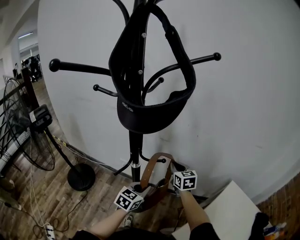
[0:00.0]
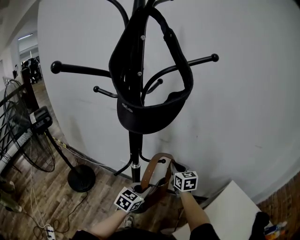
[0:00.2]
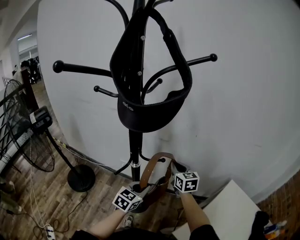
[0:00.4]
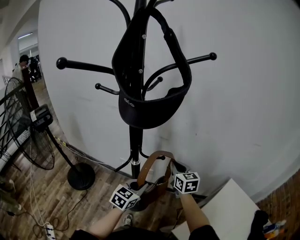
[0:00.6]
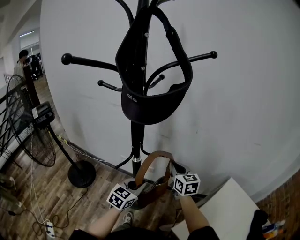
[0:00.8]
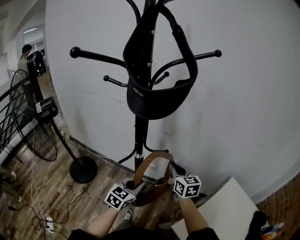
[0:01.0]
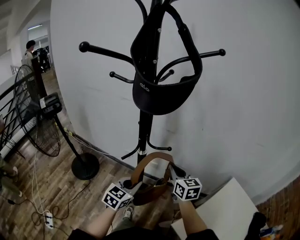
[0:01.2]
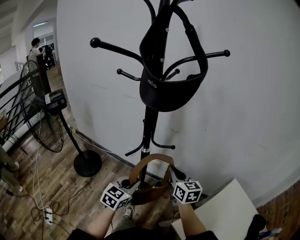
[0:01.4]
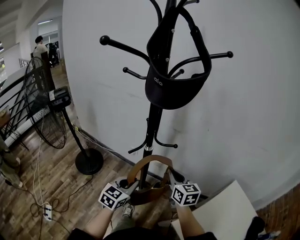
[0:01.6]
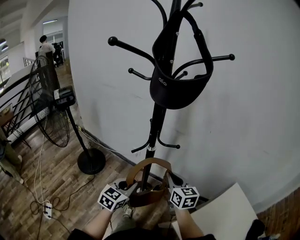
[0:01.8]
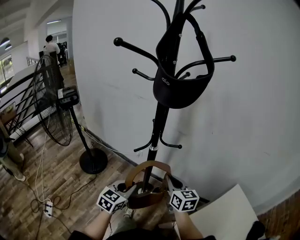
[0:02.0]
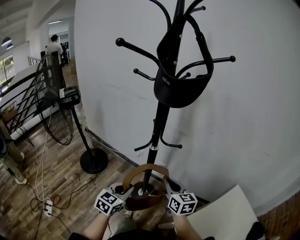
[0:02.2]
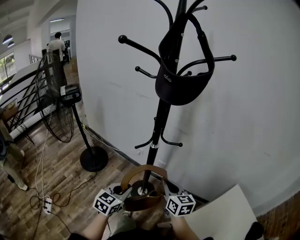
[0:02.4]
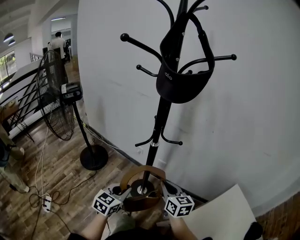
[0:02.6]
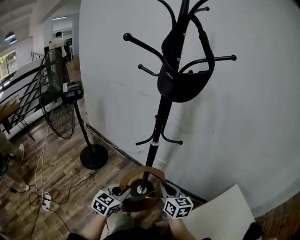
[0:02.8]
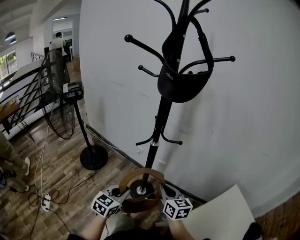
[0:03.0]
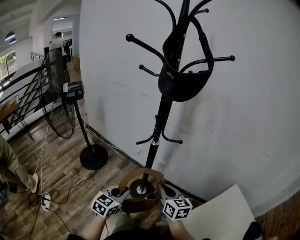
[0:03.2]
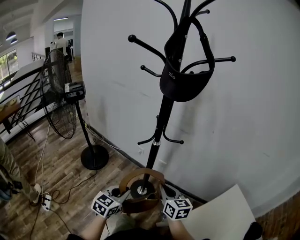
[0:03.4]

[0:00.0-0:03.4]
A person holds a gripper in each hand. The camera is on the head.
0:00.0 to 0:01.6: The left gripper is displaced backward and to the left by approximately 15 cm. The right gripper moves backward, roughly 15 cm.
0:01.6 to 0:03.4: Both grippers move backward, roughly 10 cm.

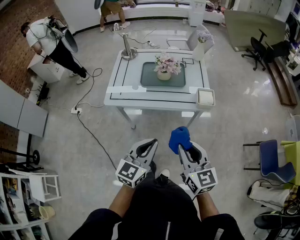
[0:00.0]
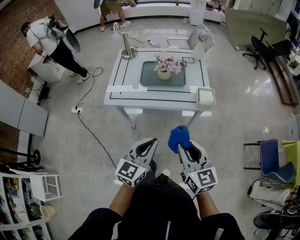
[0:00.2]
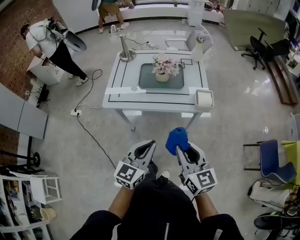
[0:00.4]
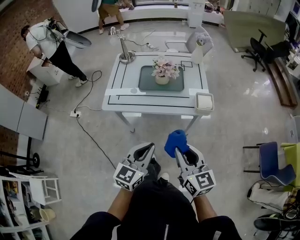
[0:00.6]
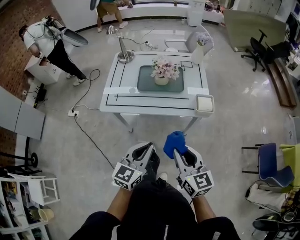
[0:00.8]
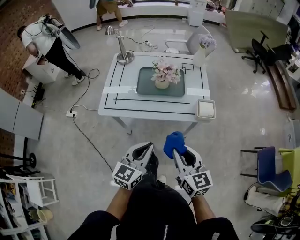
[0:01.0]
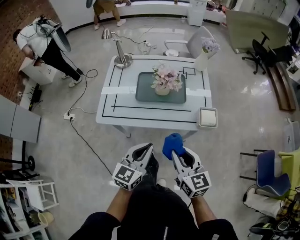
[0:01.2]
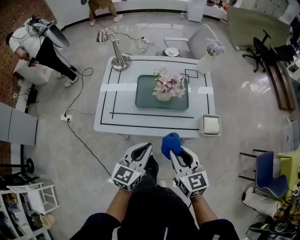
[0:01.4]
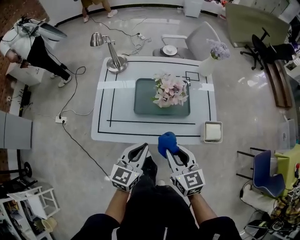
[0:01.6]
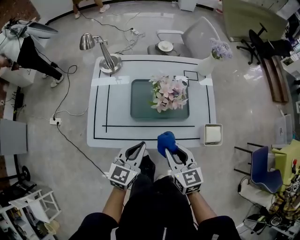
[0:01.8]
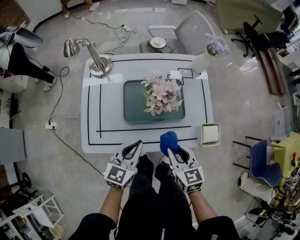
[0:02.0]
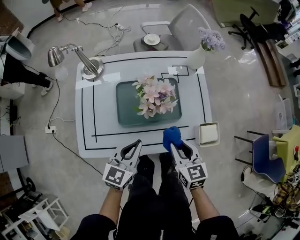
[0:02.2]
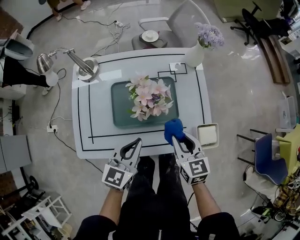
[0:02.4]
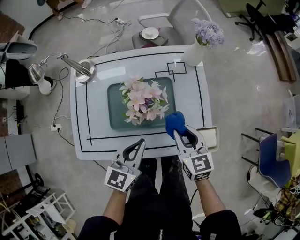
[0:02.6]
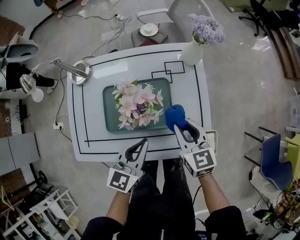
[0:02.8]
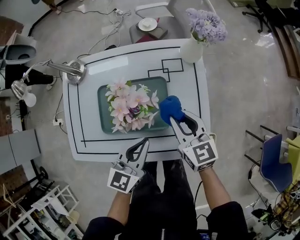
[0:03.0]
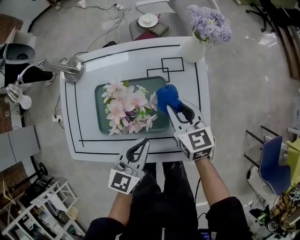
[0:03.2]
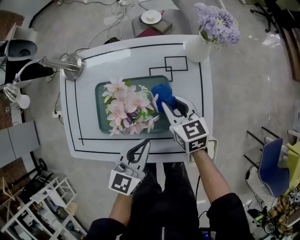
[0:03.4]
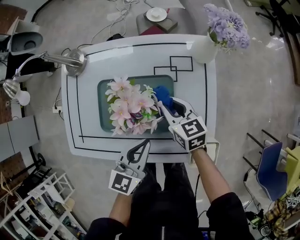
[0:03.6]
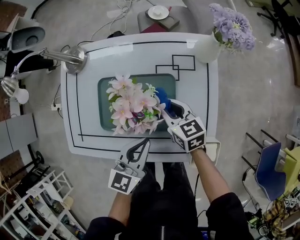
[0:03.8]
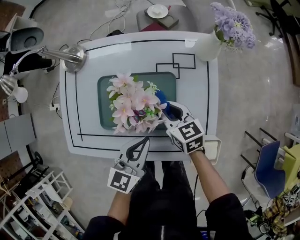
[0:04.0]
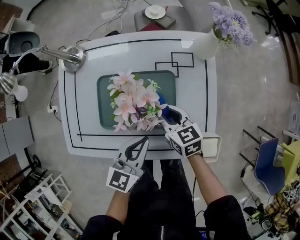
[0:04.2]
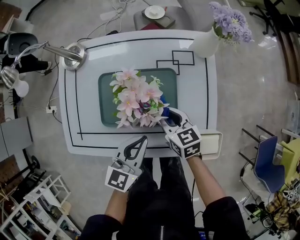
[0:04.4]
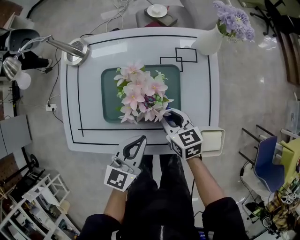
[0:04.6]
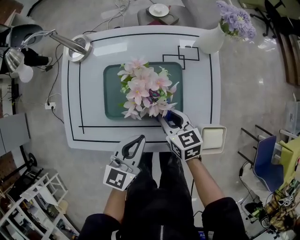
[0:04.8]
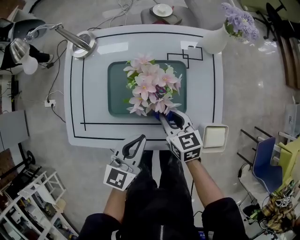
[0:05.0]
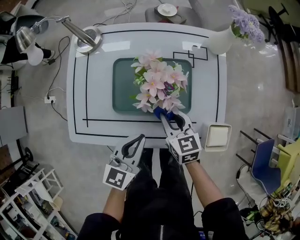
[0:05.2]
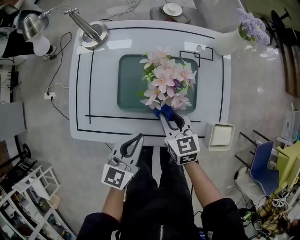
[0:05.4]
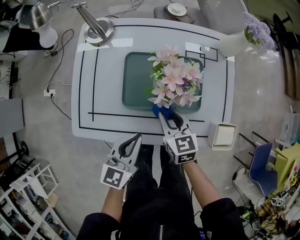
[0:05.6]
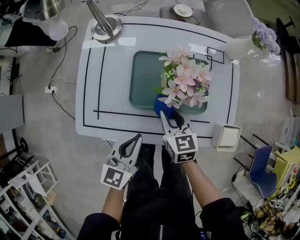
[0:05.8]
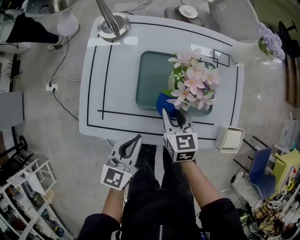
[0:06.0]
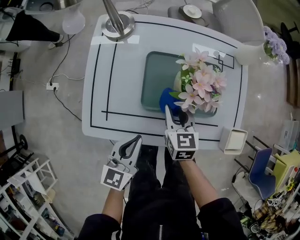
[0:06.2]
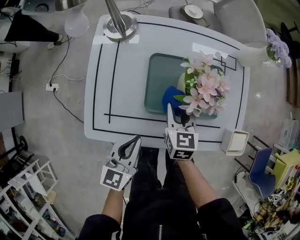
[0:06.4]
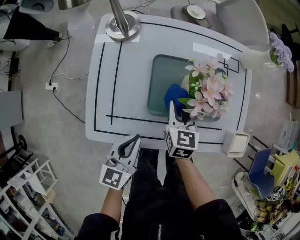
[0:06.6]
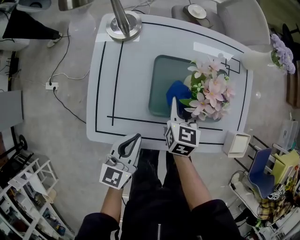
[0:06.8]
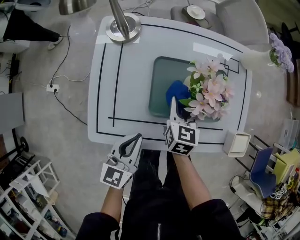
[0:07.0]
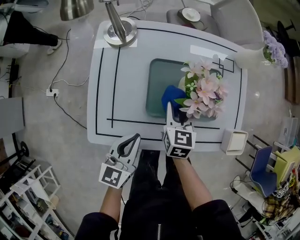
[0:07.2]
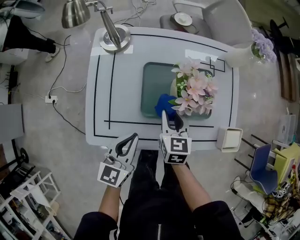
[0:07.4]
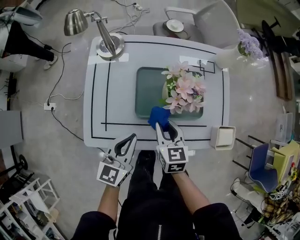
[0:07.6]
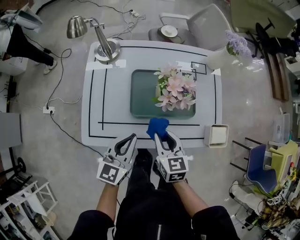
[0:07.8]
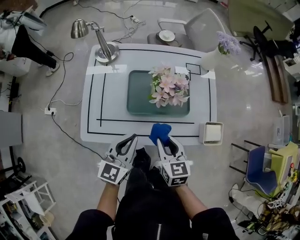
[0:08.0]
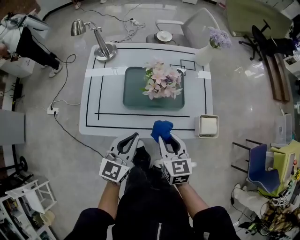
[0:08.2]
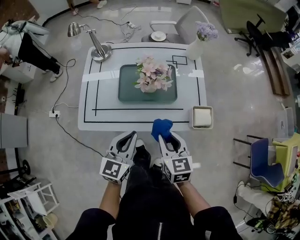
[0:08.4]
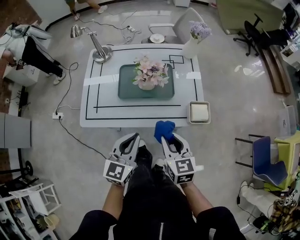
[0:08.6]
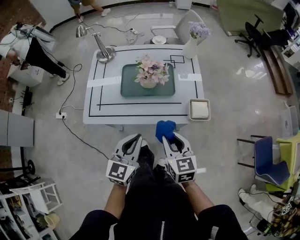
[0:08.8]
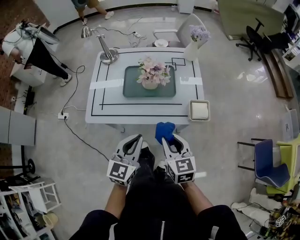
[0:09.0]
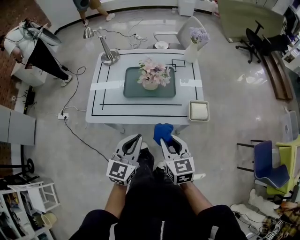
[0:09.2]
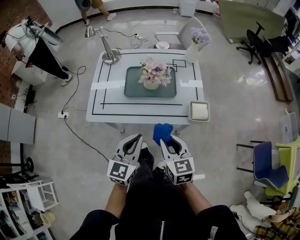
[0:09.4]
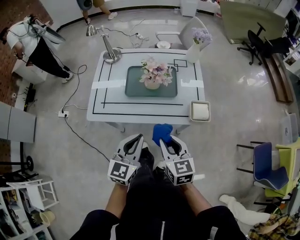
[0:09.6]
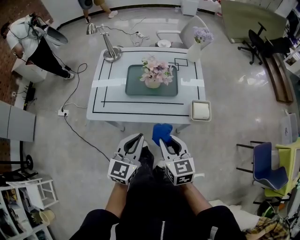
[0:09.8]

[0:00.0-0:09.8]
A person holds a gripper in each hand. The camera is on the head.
0:00.0 to 0:01.4: Both grippers move forward, approximately 20 cm.
0:01.4 to 0:02.8: The two grippers go roughly 25 cm forward.
0:02.8 to 0:04.2: The left gripper moves downward, about 5 cm, while the right gripper shifts some 15 cm downward, to the left and forward, and changes its angle by about 20 degrees.
0:04.2 to 0:05.6: Both grippers move to the left and backward, approximately 15 cm.
0:05.6 to 0:07.0: The left gripper moves to the left, some 10 cm. Meanwhile the right gripper goes roughly 10 cm to the left and forward, and rotates approximately 20 degrees.
0:07.0 to 0:08.4: The left gripper heads to the right, upward and backward, covering about 20 cm, while the right gripper heads backward, to the right and upward, covering approximately 30 cm.
0:08.4 to 0:09.8: The grippers both shift backward by some 10 cm.

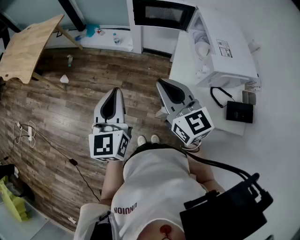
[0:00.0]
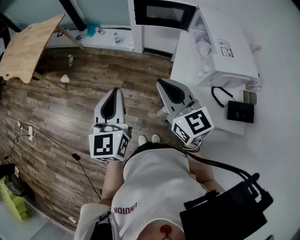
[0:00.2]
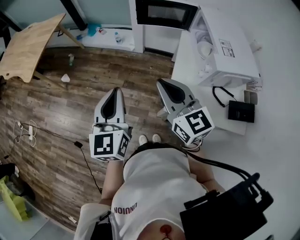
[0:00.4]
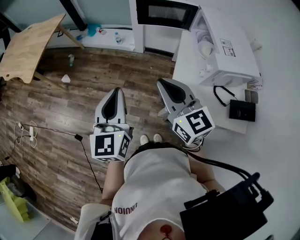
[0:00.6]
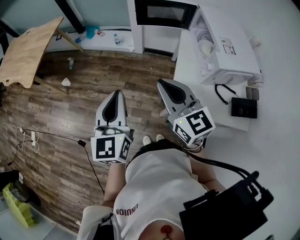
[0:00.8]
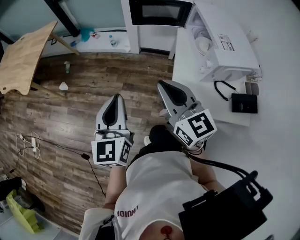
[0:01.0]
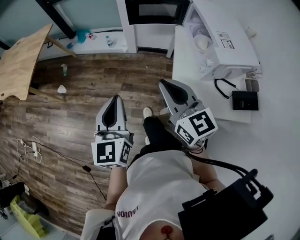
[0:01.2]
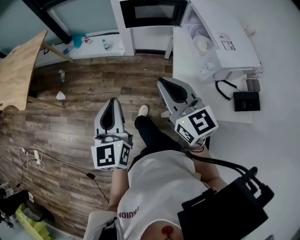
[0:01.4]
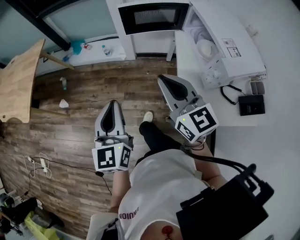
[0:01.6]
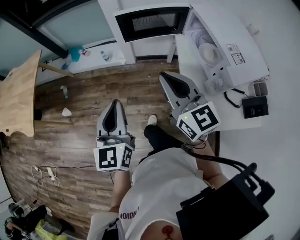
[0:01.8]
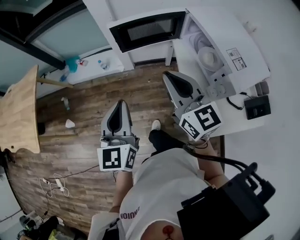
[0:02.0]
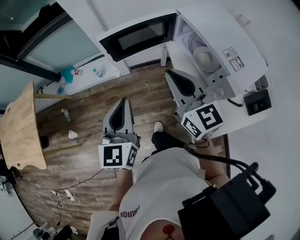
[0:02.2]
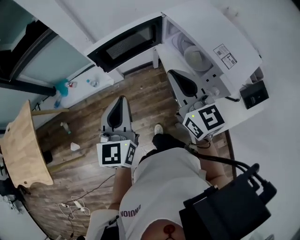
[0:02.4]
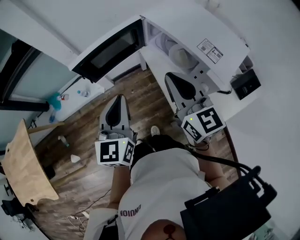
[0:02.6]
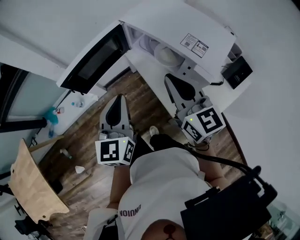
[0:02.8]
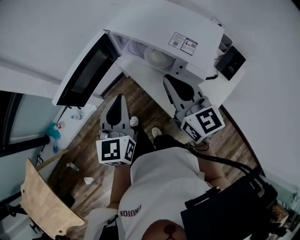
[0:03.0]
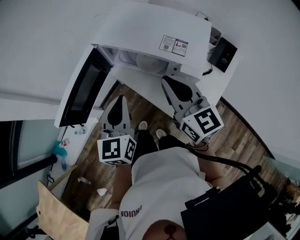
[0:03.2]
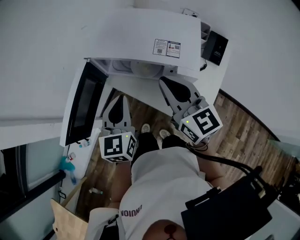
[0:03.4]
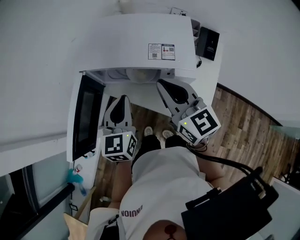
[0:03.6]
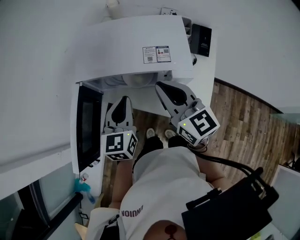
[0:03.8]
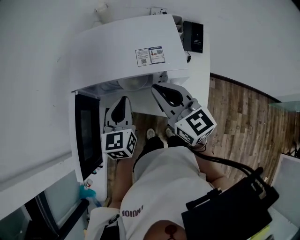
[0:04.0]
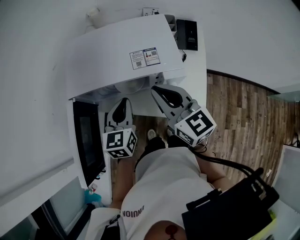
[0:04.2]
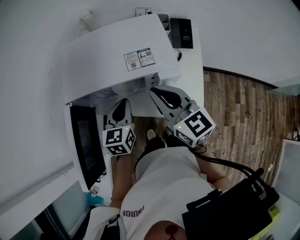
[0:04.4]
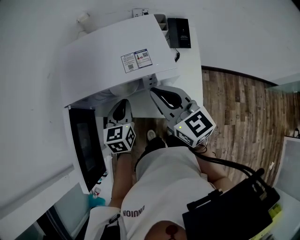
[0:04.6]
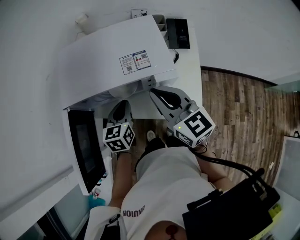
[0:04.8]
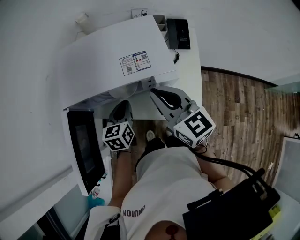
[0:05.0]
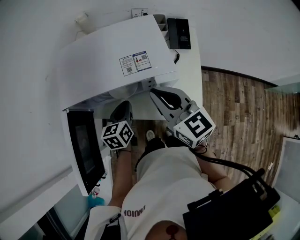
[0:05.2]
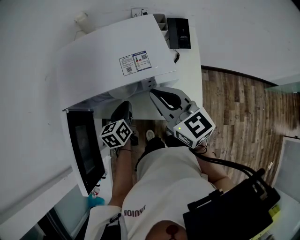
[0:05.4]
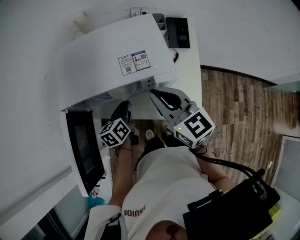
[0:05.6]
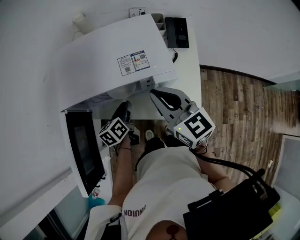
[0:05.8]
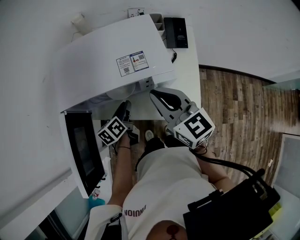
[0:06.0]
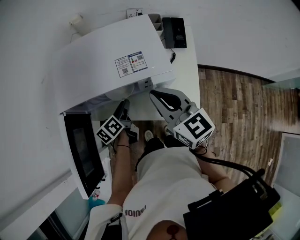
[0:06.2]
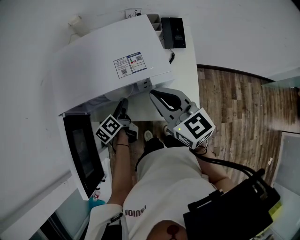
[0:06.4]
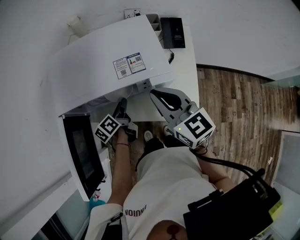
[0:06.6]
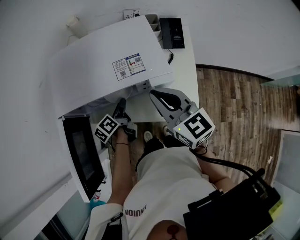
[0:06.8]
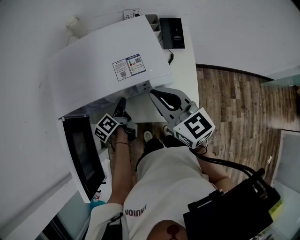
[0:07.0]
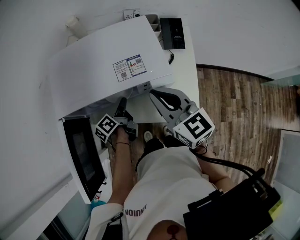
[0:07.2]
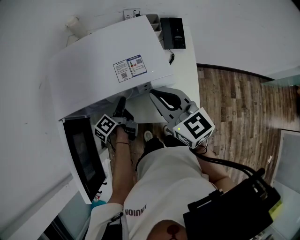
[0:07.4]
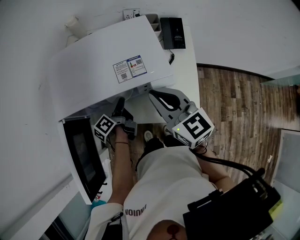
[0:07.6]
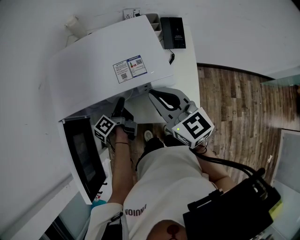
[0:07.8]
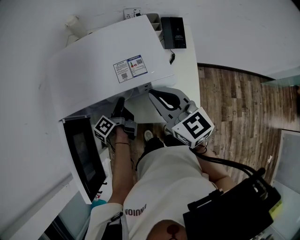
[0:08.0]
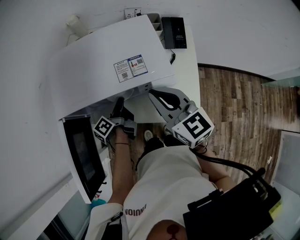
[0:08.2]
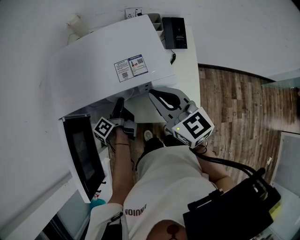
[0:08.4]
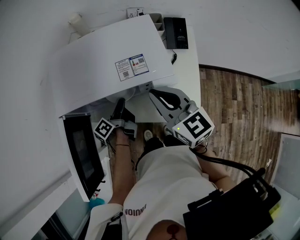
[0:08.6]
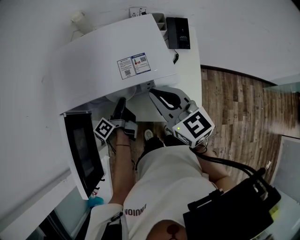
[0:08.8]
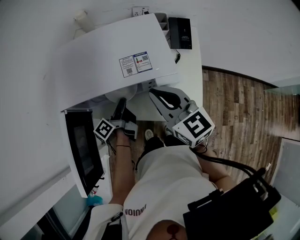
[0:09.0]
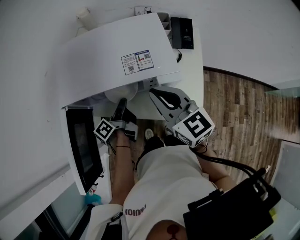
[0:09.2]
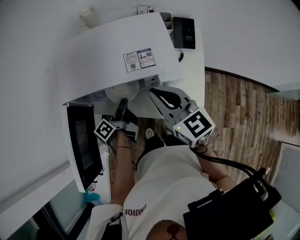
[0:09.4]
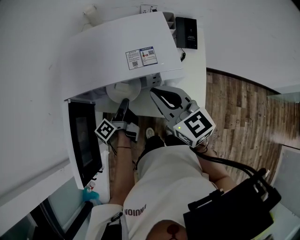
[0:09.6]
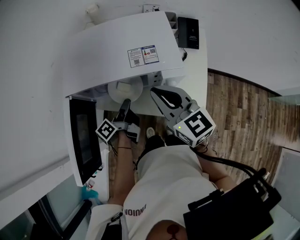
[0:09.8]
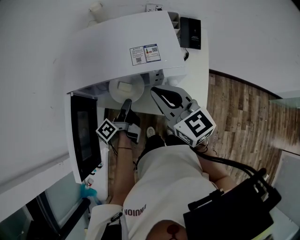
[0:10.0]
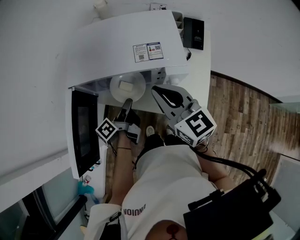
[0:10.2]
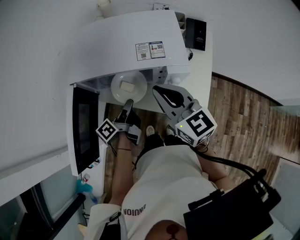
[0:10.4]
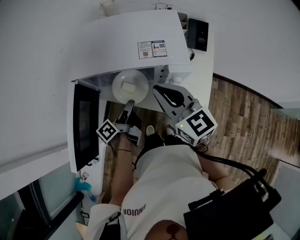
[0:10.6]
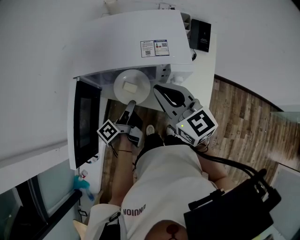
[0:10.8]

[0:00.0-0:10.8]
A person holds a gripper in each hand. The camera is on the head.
0:00.0 to 0:01.6: The grippers both shift forward by roughly 10 cm.
0:01.6 to 0:03.0: The right gripper changes place by some 20 cm, and turns by about 50 degrees. The left gripper shifts by about 30 cm, and changes its angle by some 50 degrees.
0:03.0 to 0:04.6: The right gripper shifts by some 5 cm, and rotates approximately 30 degrees. Meanwhile the left gripper moves about 20 cm, and changes its angle by roughly 50 degrees.
0:04.6 to 0:06.2: The left gripper travels downward by some 10 cm, twists about 40 degrees counterclockwise, seen from behind, and opens up.
0:06.2 to 0:07.8: The left gripper swivels roughly 20 degrees.
0:07.8 to 0:09.2: There are only small adjustments of the grippers.
0:09.2 to 0:10.8: The left gripper shifts roughly 5 cm backward.
